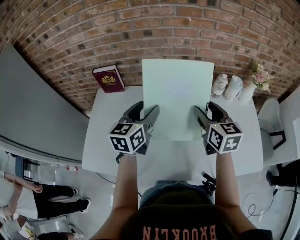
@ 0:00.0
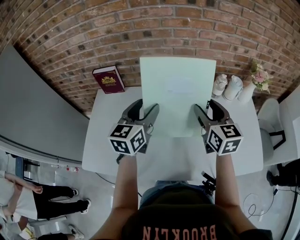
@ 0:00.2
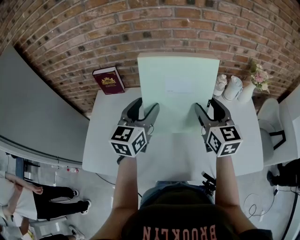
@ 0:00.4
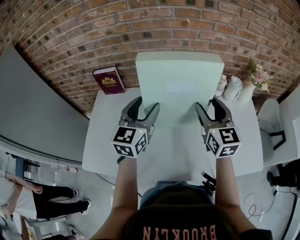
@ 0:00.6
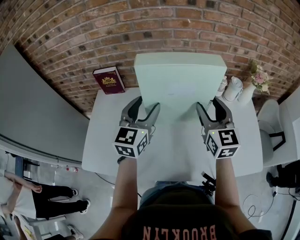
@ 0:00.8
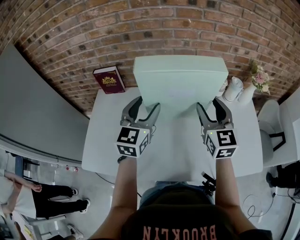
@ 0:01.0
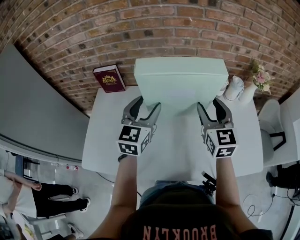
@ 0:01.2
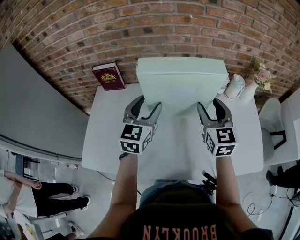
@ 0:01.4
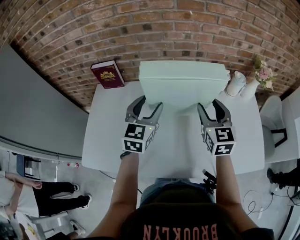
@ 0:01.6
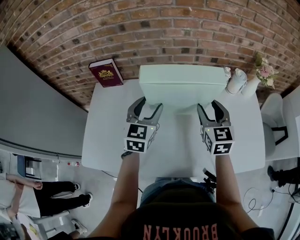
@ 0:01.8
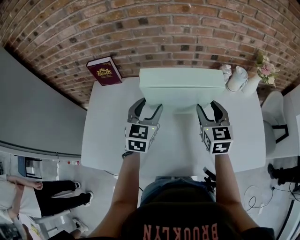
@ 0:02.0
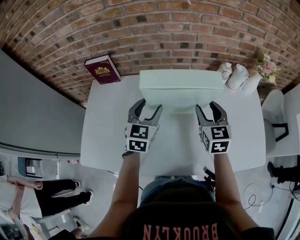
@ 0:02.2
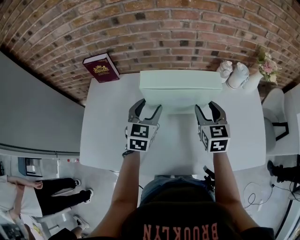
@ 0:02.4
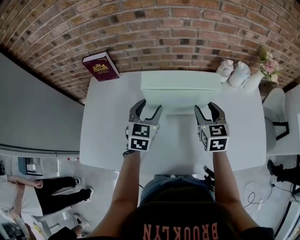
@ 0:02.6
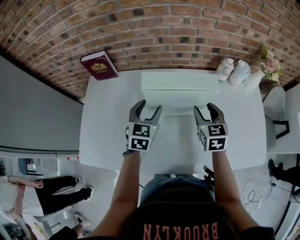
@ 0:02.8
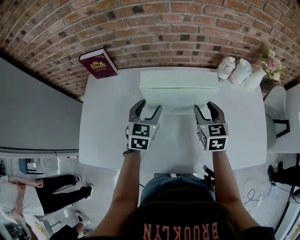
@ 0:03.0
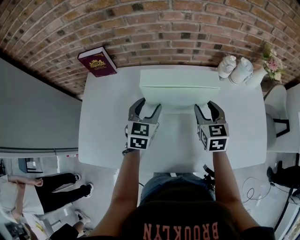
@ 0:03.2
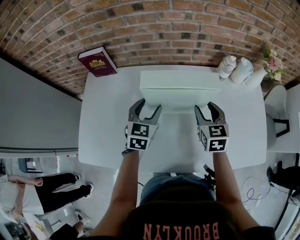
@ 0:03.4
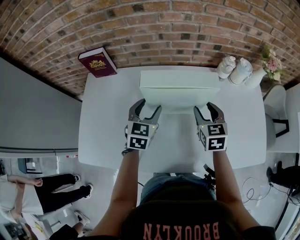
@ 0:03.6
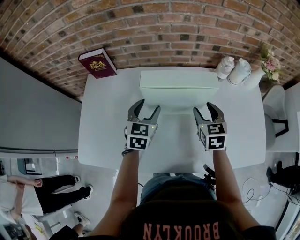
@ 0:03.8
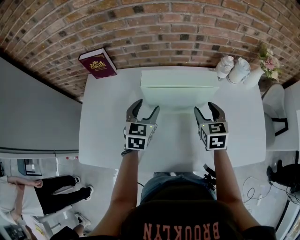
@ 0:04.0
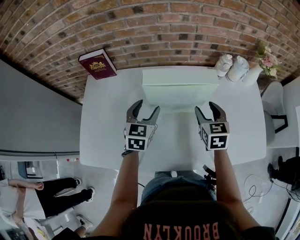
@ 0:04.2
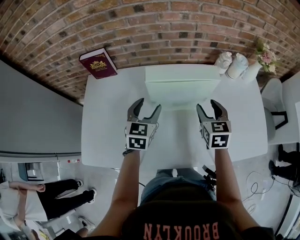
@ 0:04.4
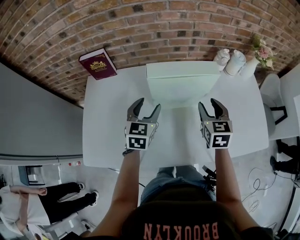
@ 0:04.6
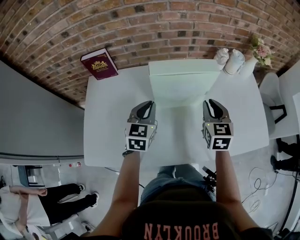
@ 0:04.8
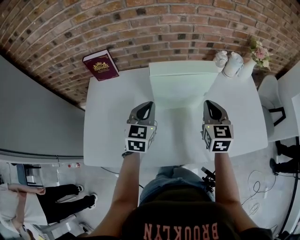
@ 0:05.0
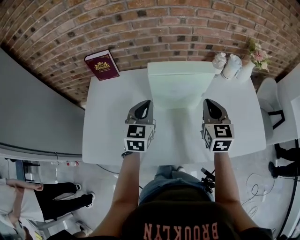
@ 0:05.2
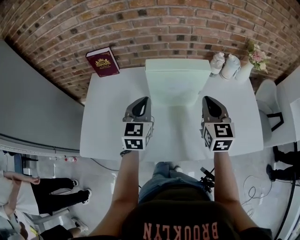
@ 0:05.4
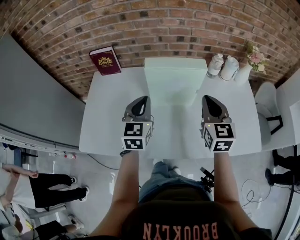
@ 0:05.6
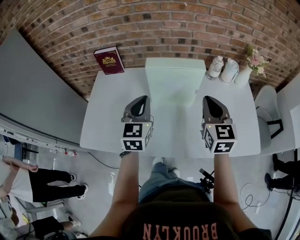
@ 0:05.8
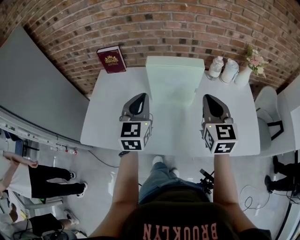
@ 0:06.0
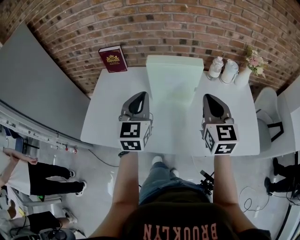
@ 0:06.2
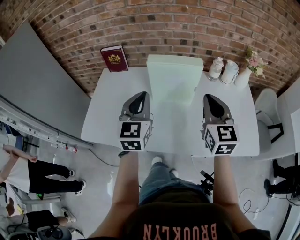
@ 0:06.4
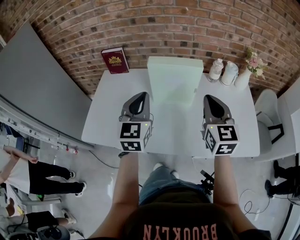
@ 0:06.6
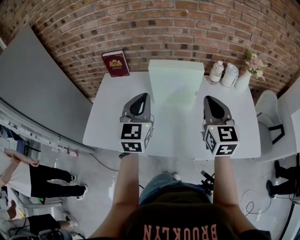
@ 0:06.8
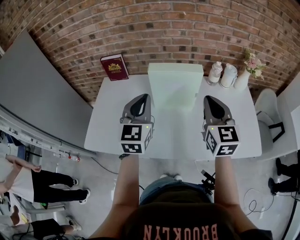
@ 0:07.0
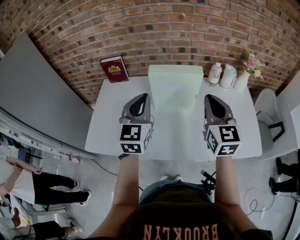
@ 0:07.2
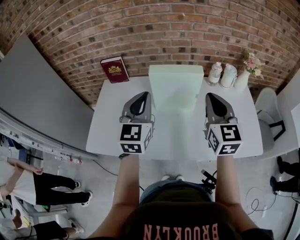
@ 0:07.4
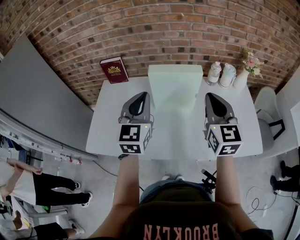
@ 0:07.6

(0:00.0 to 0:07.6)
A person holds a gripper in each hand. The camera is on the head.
0:00.0 - 0:01.6: The left gripper rotates approximately 20 degrees.
0:01.6 - 0:03.0: The two grippers go about 10 cm downward.
0:03.0 - 0:04.6: The grippers make only small movements.
0:04.6 - 0:06.0: The grippers both shift upward and backward by approximately 15 cm. The right gripper swivels roughly 20 degrees, and closes its fingers, while the left gripper swivels some 20 degrees, and closes up.
0:06.0 - 0:07.6: The two grippers go roughly 5 cm upward.

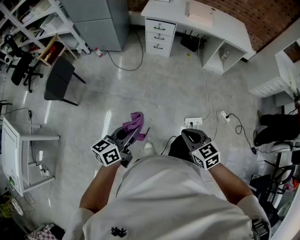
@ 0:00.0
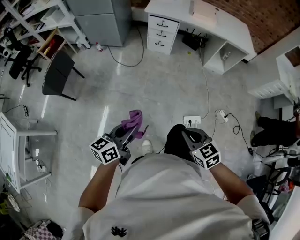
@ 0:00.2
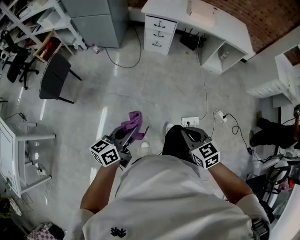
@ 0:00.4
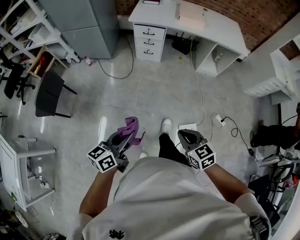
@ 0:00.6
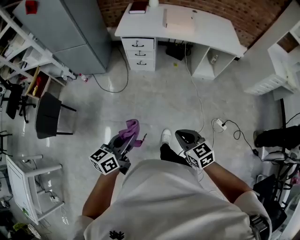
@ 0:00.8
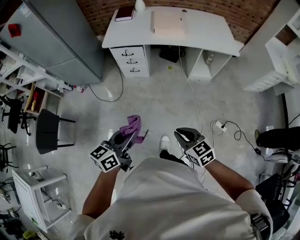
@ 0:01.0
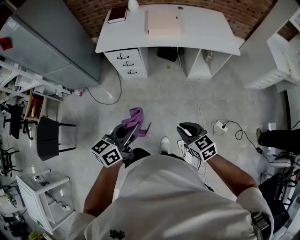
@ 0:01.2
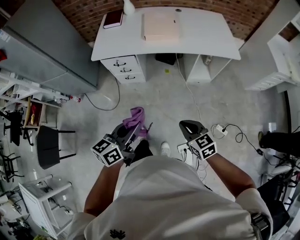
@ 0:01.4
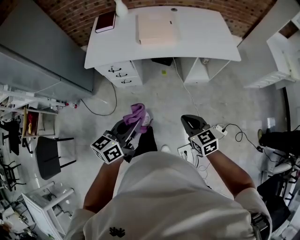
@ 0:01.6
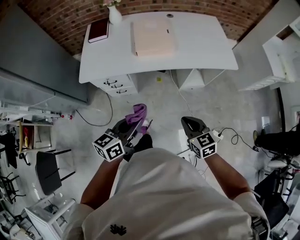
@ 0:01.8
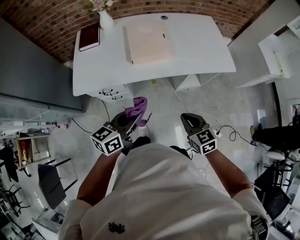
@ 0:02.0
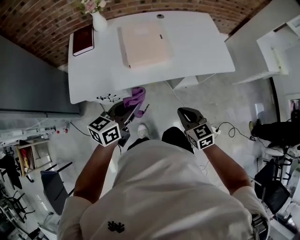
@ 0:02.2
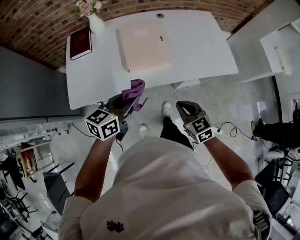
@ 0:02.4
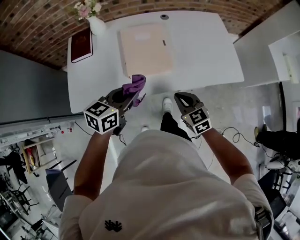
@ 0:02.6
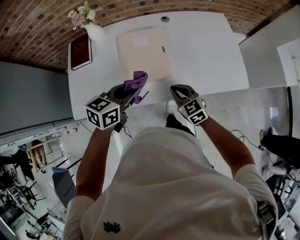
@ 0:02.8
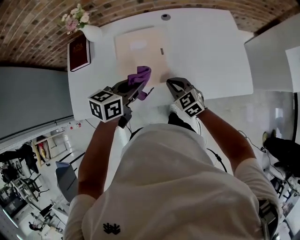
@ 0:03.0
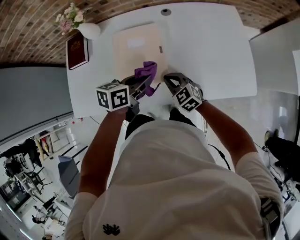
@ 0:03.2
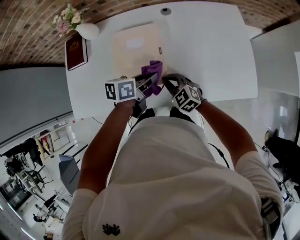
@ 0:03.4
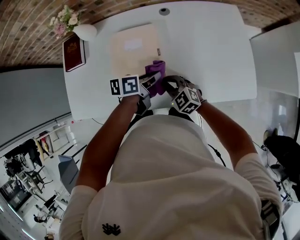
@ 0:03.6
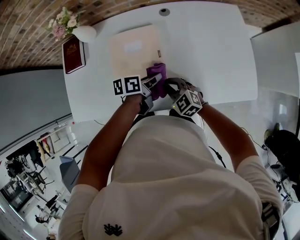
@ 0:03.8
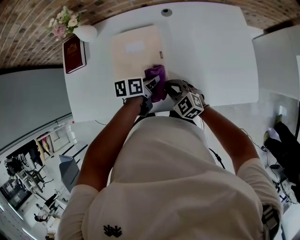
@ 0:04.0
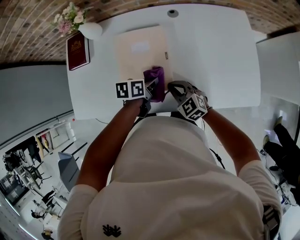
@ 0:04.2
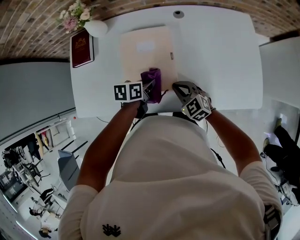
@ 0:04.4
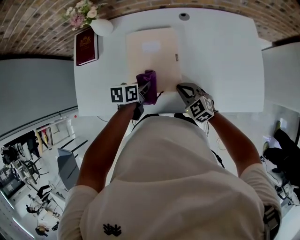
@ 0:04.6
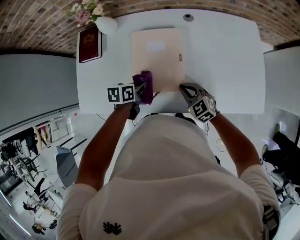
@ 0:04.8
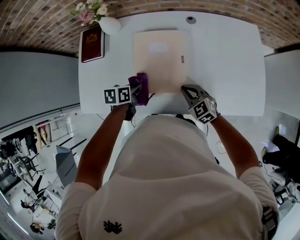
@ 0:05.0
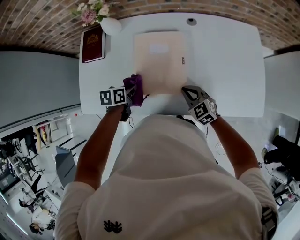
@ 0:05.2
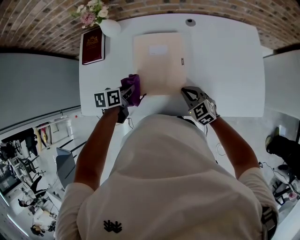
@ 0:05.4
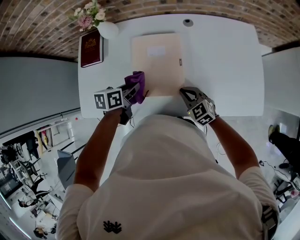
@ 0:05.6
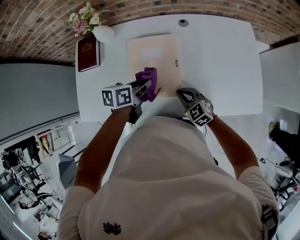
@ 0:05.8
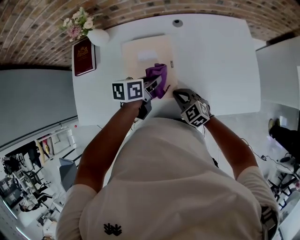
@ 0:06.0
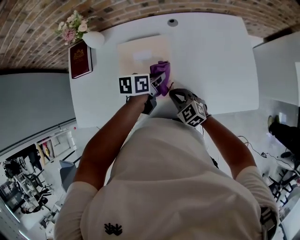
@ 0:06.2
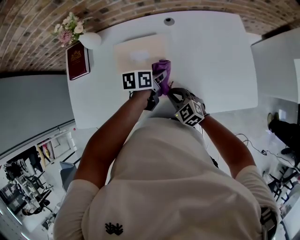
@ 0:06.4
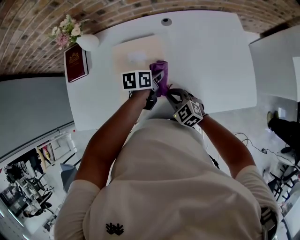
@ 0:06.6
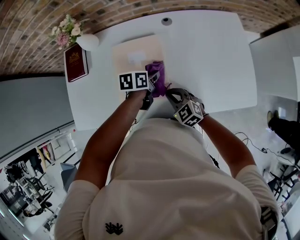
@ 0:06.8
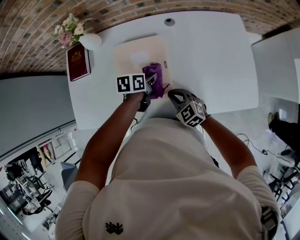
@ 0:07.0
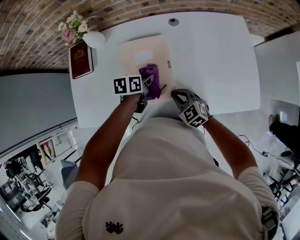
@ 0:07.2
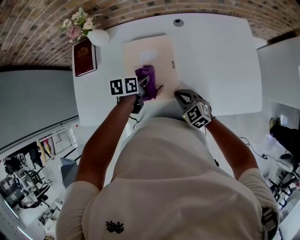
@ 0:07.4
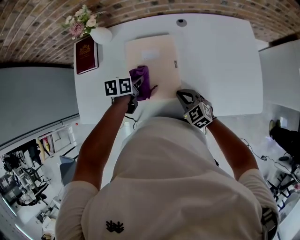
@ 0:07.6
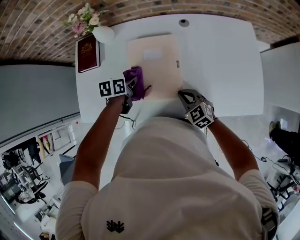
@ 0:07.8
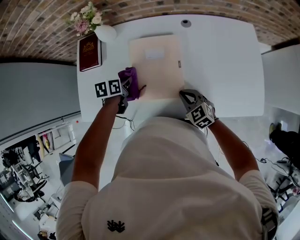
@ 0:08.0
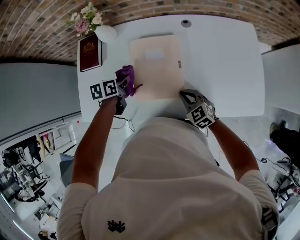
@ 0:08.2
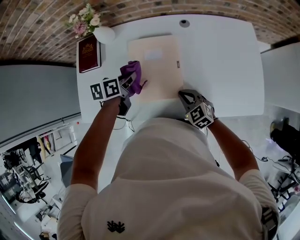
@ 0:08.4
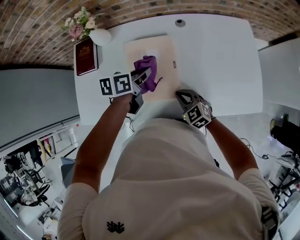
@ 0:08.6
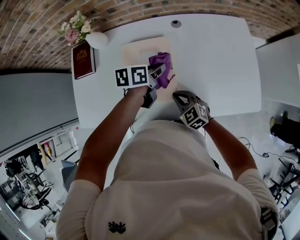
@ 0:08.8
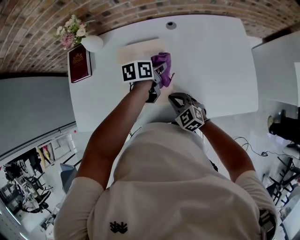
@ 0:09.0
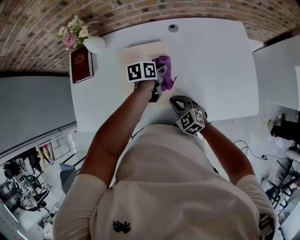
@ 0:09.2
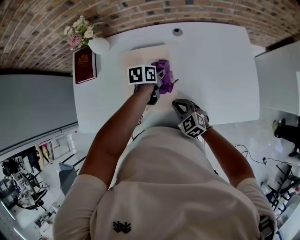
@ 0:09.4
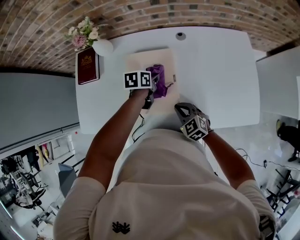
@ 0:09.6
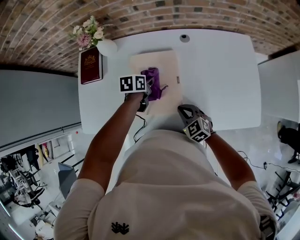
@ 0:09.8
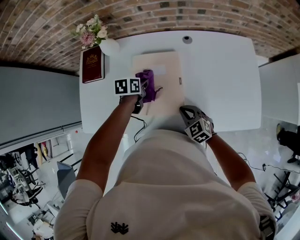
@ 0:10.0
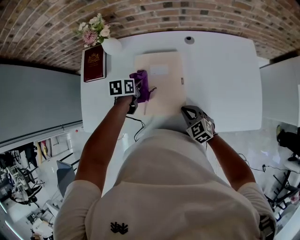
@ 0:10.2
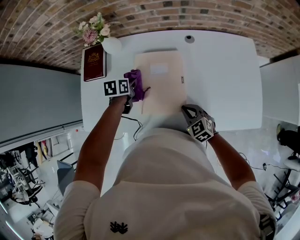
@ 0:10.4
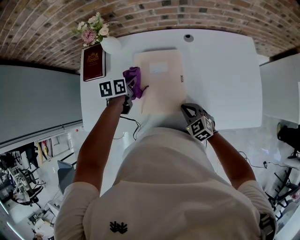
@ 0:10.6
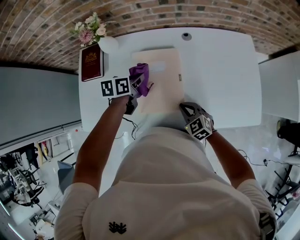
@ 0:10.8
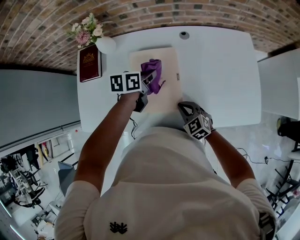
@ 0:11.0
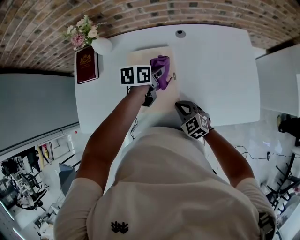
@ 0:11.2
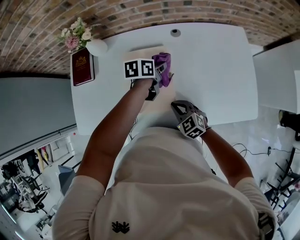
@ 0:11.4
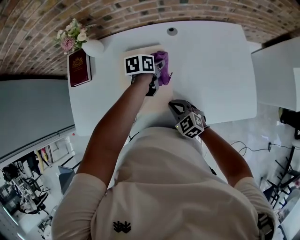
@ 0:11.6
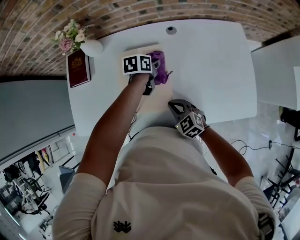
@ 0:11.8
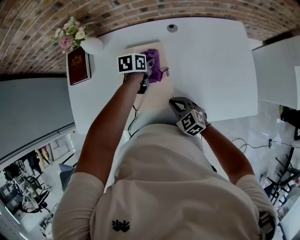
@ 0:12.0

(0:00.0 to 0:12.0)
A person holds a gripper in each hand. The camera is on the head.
0:00.0 - 0:01.6: The pair of grippers is taken forward, approximately 70 cm. The right gripper swivels approximately 20 degrees.
0:01.6 - 0:03.0: The pair of grippers is taken forward, roughly 60 cm. The left gripper swivels roughly 20 degrees.
0:03.0 - 0:04.4: The right gripper moves downward, about 5 cm, while the left gripper goes approximately 20 cm downward and forward, and rotates about 30 degrees.
0:04.4 - 0:06.0: The left gripper goes about 10 cm upward, and travels to the left and back again, approximately 15 cm each way.
0:06.0 - 0:07.6: The left gripper is displaced to the left and downward by some 10 cm.
0:07.6 - 0:09.0: The left gripper is displaced to the right by about 15 cm.
0:09.0 - 0:10.4: The left gripper goes some 25 cm to the left, and rotates about 20 degrees.
0:10.4 - 0:12.0: The left gripper moves to the right, about 15 cm.

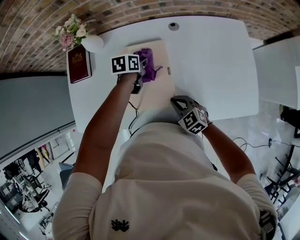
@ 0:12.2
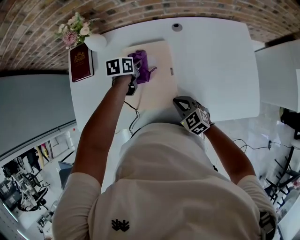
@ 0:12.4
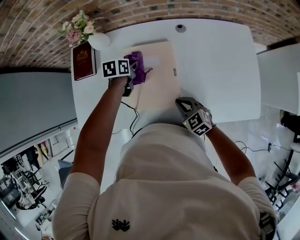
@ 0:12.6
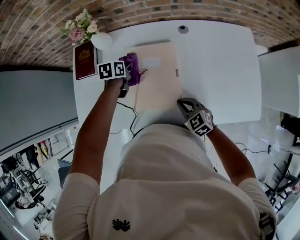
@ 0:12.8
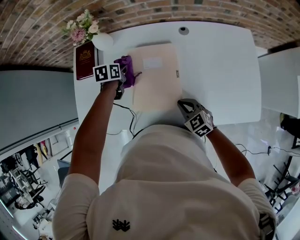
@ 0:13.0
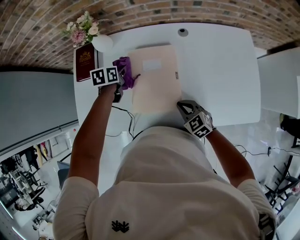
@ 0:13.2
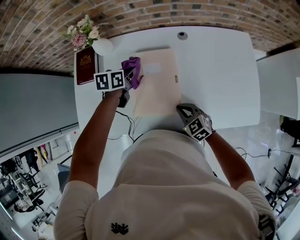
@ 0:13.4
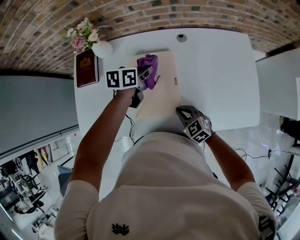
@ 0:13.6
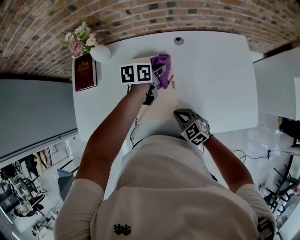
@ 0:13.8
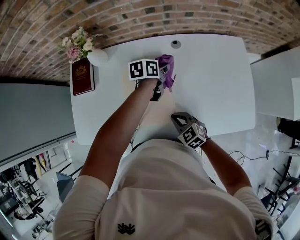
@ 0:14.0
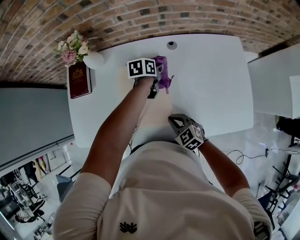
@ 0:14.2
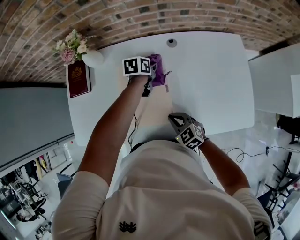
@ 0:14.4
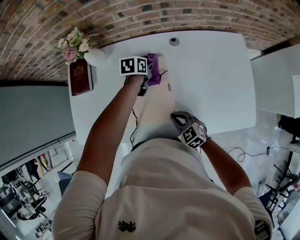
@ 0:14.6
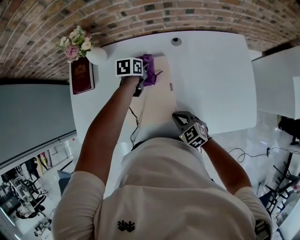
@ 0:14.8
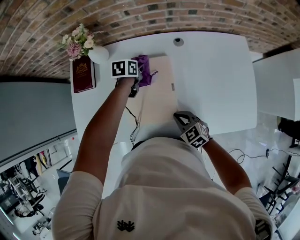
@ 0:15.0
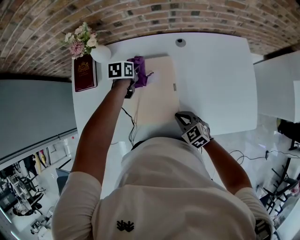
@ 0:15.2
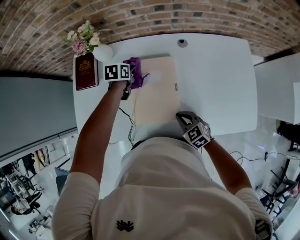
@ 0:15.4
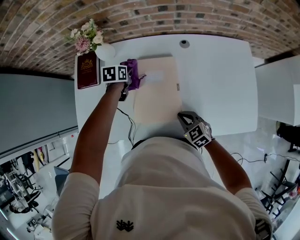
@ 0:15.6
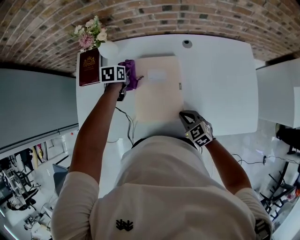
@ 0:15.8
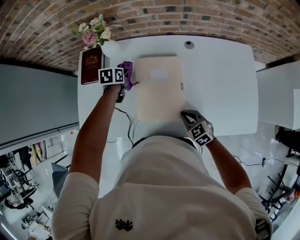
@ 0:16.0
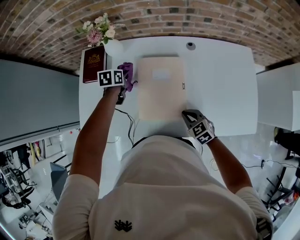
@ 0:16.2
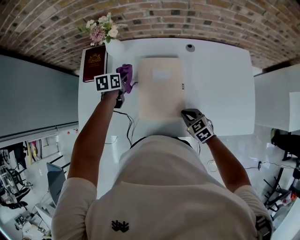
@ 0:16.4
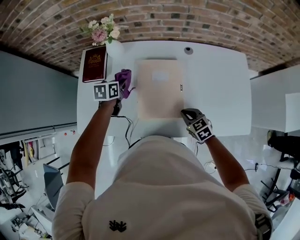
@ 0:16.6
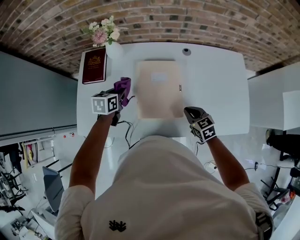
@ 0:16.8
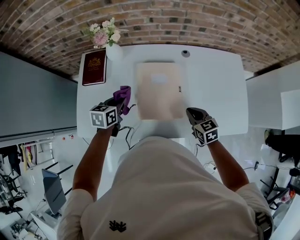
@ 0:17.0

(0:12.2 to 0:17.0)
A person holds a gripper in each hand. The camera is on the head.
0:12.2 - 0:13.8: The left gripper heads upward, covering approximately 5 cm, and moves approximately 15 cm to the left and comes back.
0:13.8 - 0:15.4: The left gripper is displaced to the left and downward by about 15 cm, and changes its angle by about 20 degrees.
0:15.4 - 0:17.0: The left gripper moves backward, to the left and upward, about 20 cm. The right gripper moves upward, roughly 5 cm.
